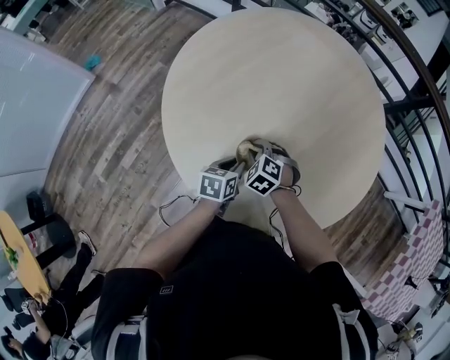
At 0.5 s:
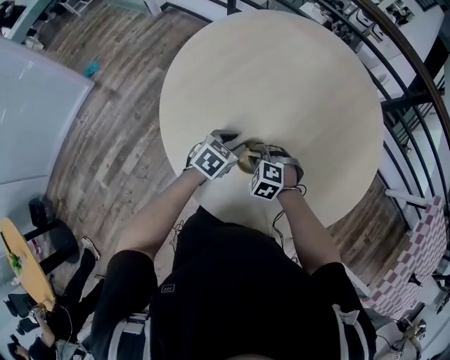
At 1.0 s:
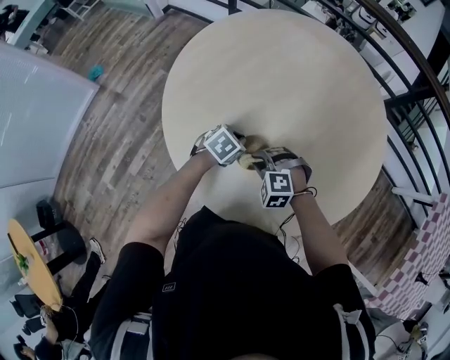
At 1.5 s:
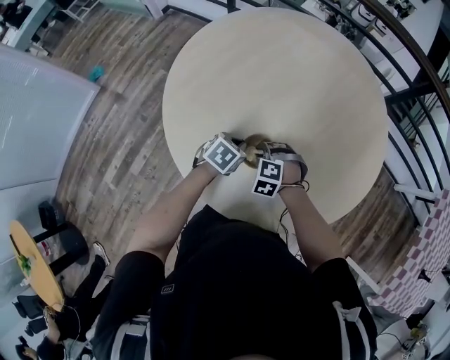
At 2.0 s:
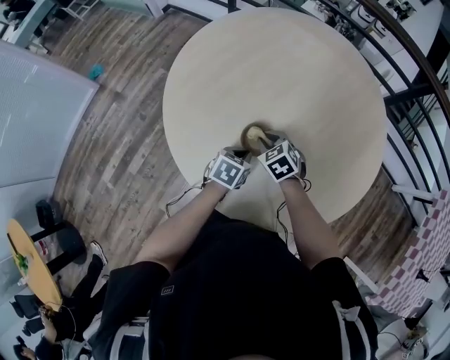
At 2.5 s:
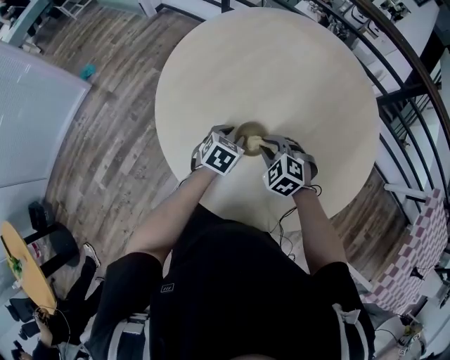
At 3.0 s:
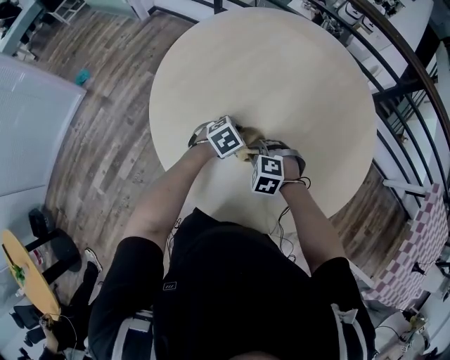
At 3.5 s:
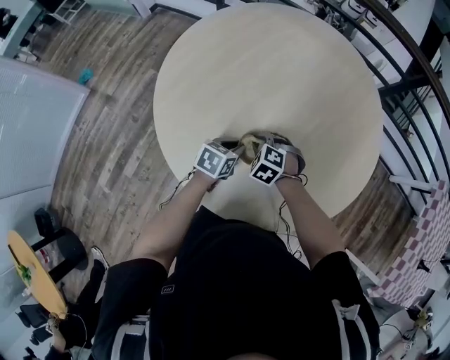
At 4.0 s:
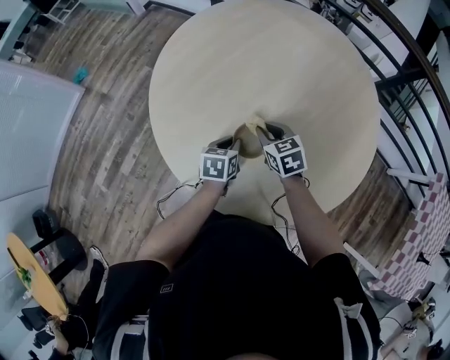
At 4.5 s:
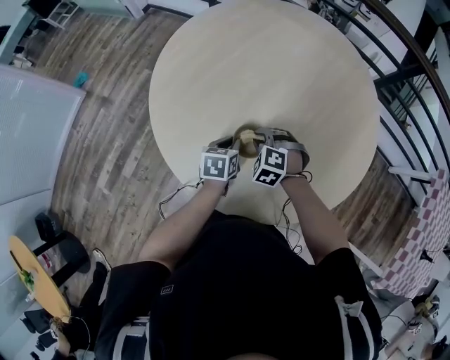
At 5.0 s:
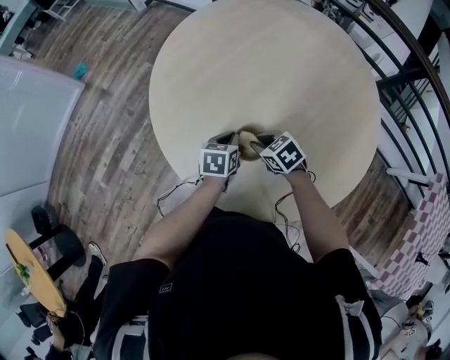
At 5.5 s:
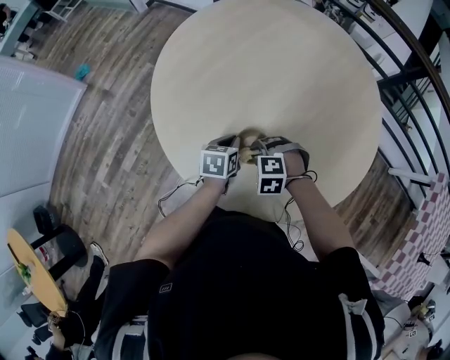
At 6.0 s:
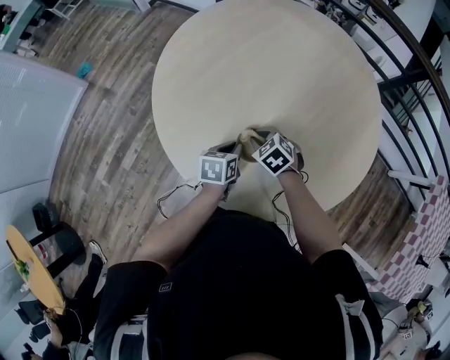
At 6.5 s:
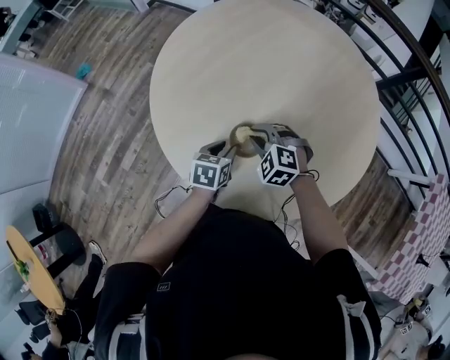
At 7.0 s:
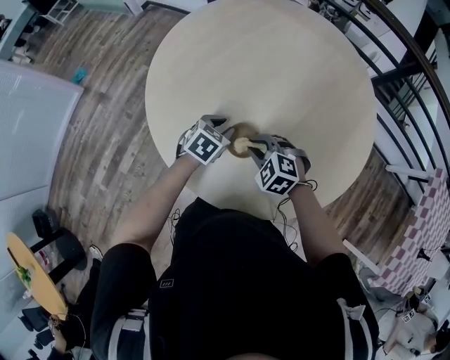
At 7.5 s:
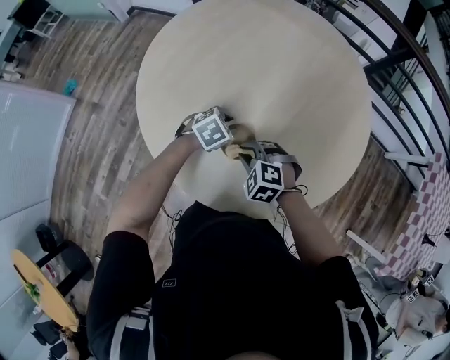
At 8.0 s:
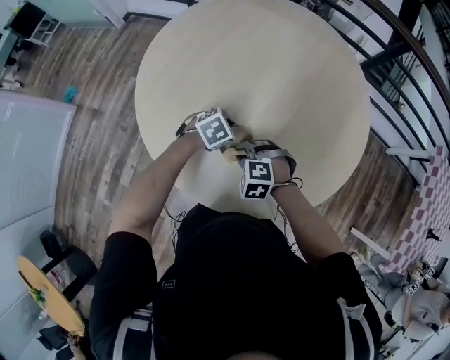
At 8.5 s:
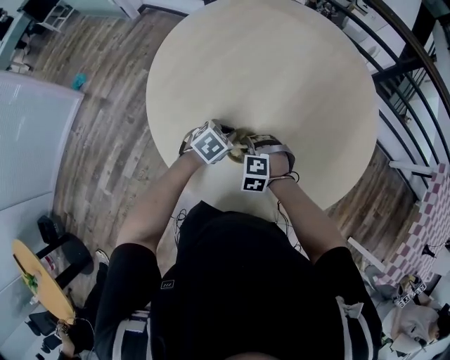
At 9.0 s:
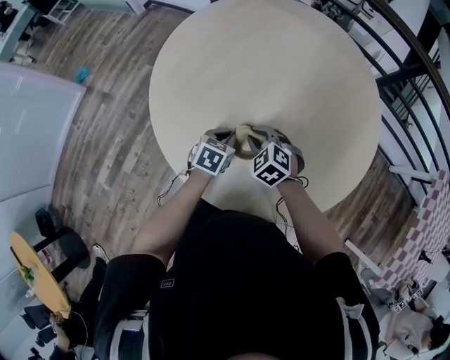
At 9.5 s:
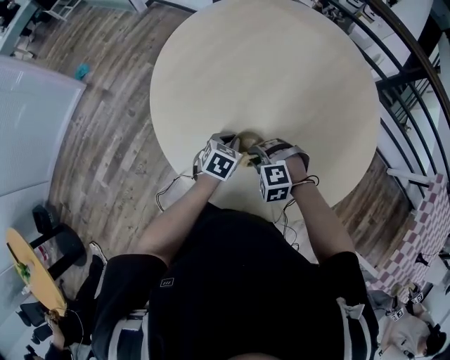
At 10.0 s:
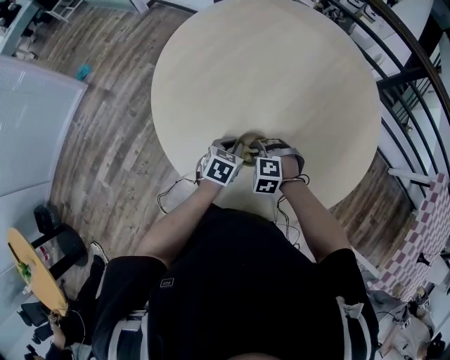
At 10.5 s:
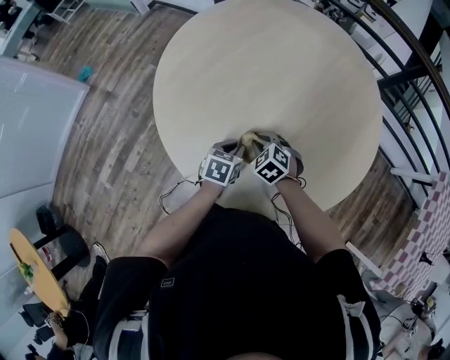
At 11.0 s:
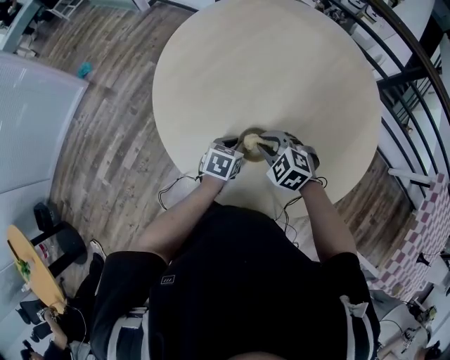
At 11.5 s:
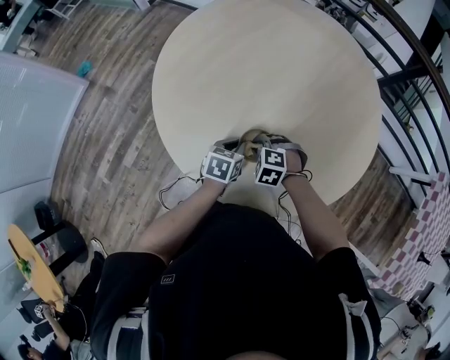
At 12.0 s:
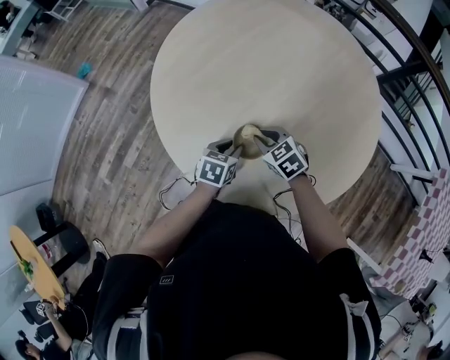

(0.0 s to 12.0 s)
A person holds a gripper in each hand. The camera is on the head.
0.0 s - 2.0 s: The right gripper shifts by about 5 cm, and swivels some 30 degrees, while the left gripper moves roughly 10 cm forward and comes back, and turns by approximately 20 degrees.
2.0 s - 4.0 s: The left gripper travels forward and back again, roughly 10 cm each way.
4.0 s - 6.0 s: The right gripper travels downward by approximately 5 cm, and swivels approximately 30 degrees.
6.0 s - 8.0 s: The left gripper shifts by approximately 5 cm, twists some 60 degrees clockwise, seen from behind, and opens and closes again, while the right gripper changes place by about 5 cm, and changes its angle by some 30 degrees.
8.0 s - 10.0 s: The left gripper moves about 5 cm, and turns by roughly 50 degrees. The right gripper moves up and down over about 5 cm, changing direction 2 times.
10.0 s - 12.0 s: The right gripper swings up and down, about 10 cm each way, with 2 reversals, and twists some 40 degrees clockwise, seen from behind.

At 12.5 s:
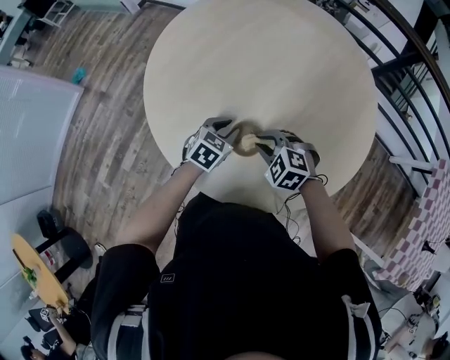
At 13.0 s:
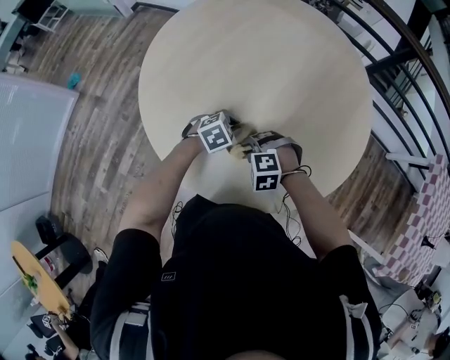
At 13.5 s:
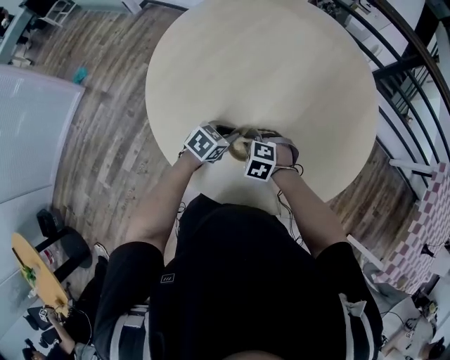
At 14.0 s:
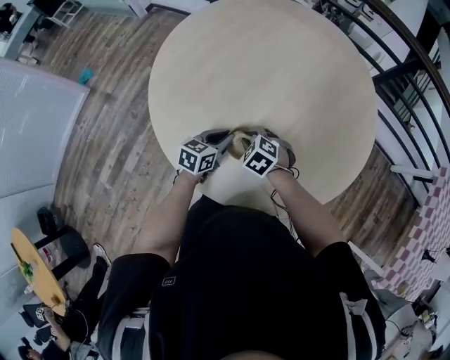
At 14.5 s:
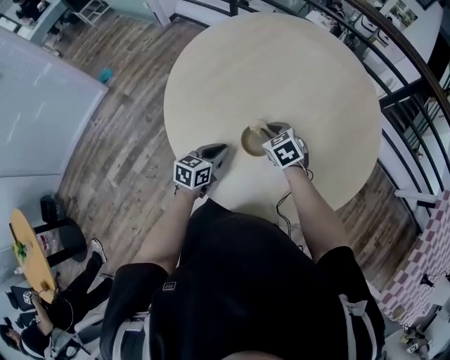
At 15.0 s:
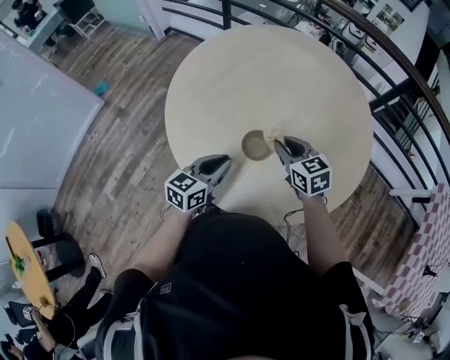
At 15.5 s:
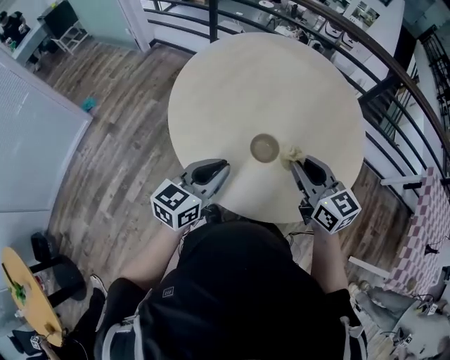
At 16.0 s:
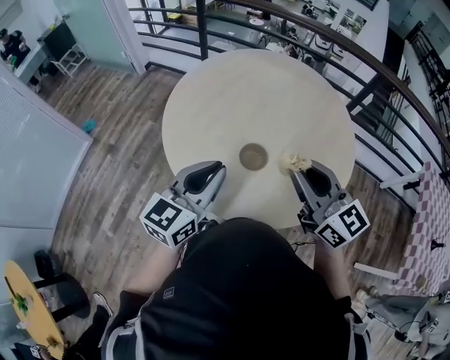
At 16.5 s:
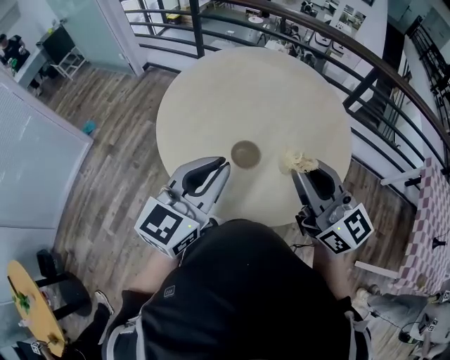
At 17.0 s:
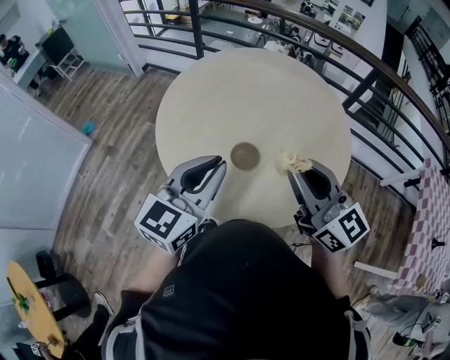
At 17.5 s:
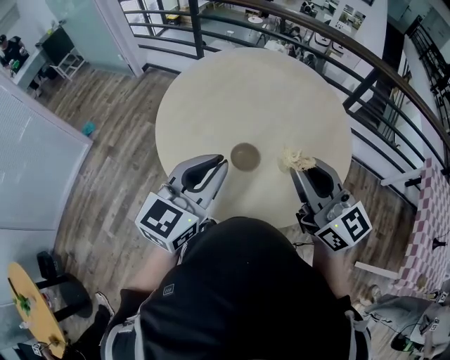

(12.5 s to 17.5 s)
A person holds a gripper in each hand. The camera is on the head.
12.5 s - 15.0 s: The grippers both shift upward by roughly 10 cm. The right gripper rolls clockwise, seen from behind, by about 40 degrees. The left gripper rotates some 30 degrees.
15.0 s - 17.5 s: The left gripper is displaced upward by about 25 cm, and swivels approximately 20 degrees. Meanwhile the right gripper heads upward and backward, covering approximately 30 cm, and tilts its fingers approximately 40 degrees upward.

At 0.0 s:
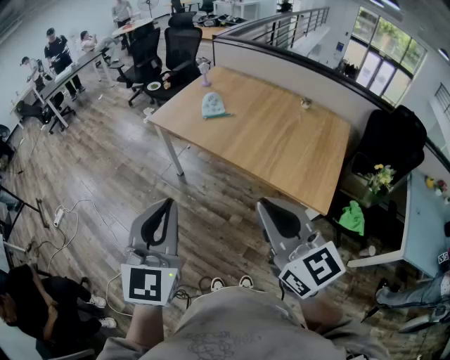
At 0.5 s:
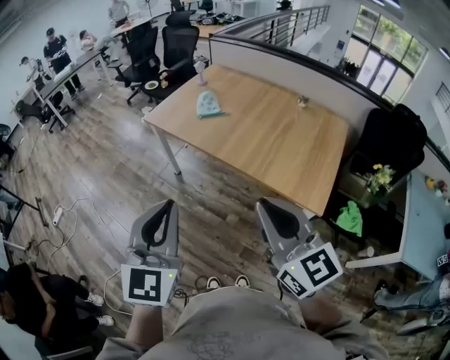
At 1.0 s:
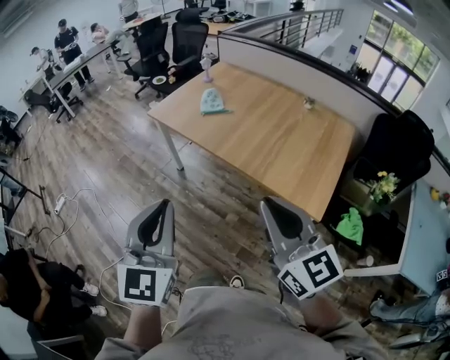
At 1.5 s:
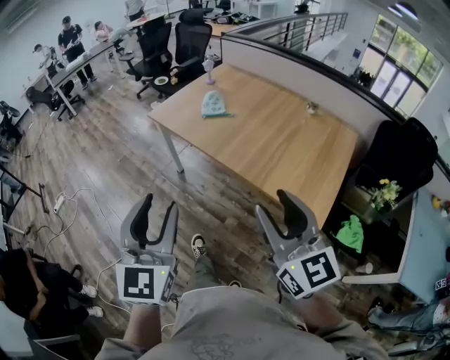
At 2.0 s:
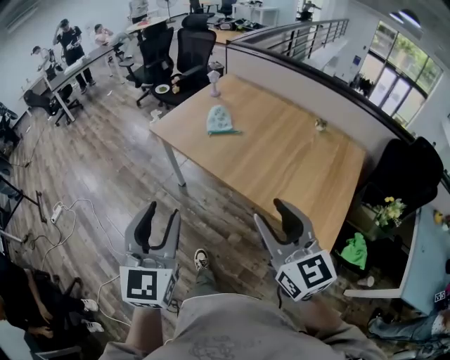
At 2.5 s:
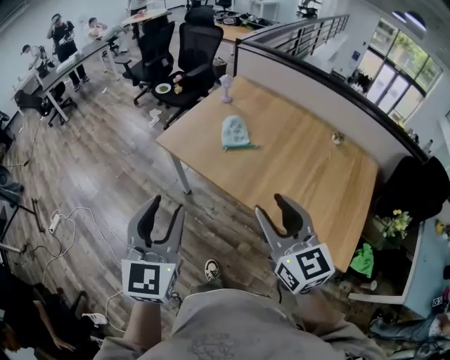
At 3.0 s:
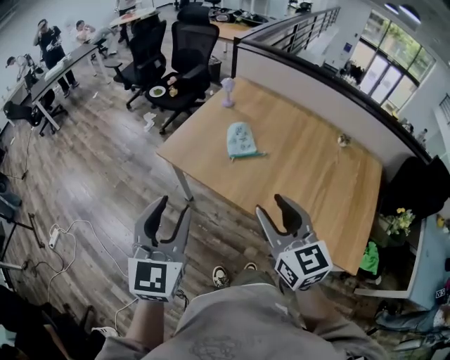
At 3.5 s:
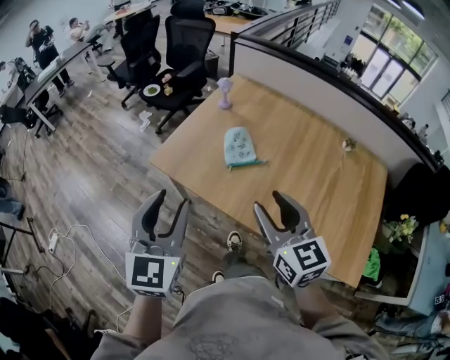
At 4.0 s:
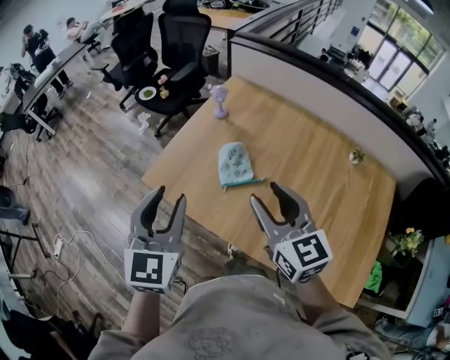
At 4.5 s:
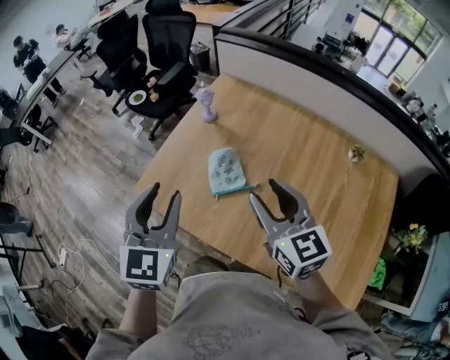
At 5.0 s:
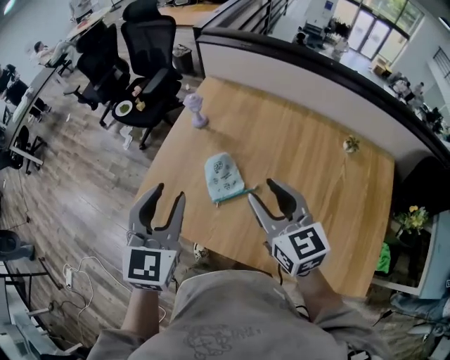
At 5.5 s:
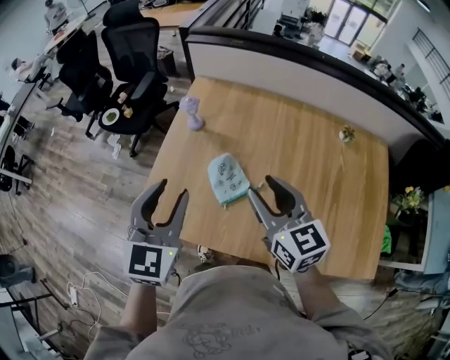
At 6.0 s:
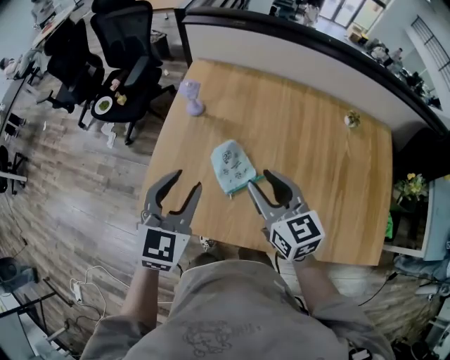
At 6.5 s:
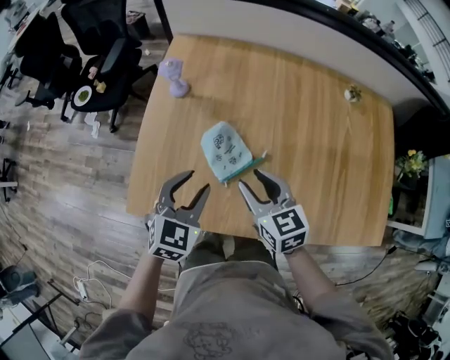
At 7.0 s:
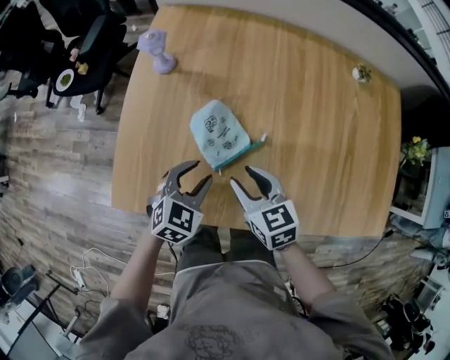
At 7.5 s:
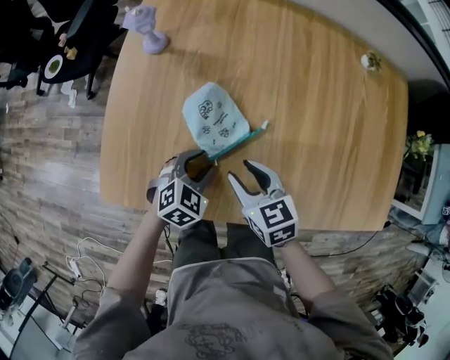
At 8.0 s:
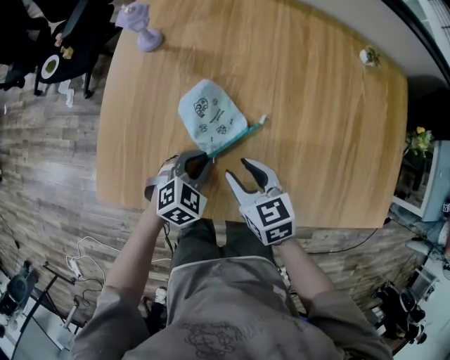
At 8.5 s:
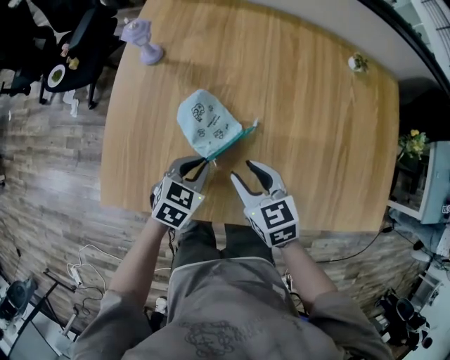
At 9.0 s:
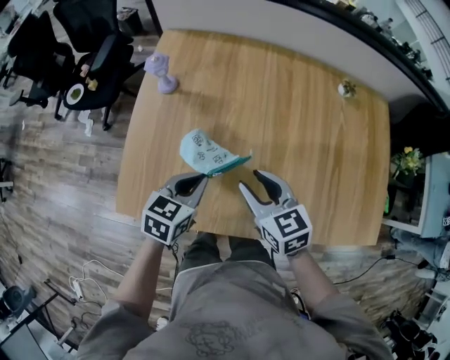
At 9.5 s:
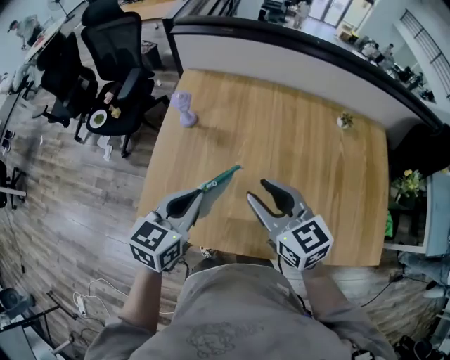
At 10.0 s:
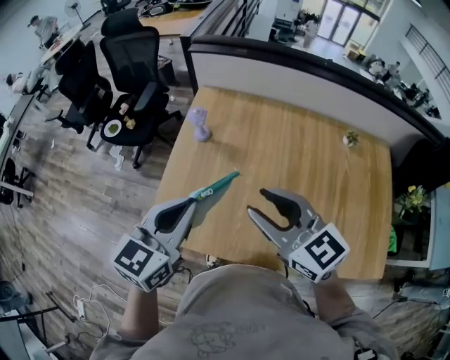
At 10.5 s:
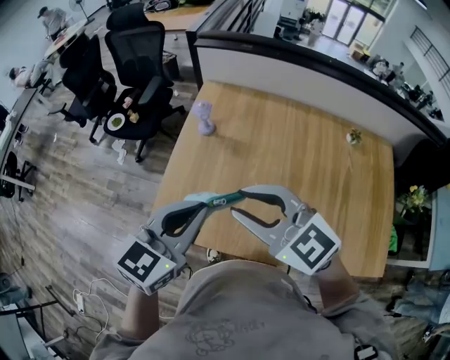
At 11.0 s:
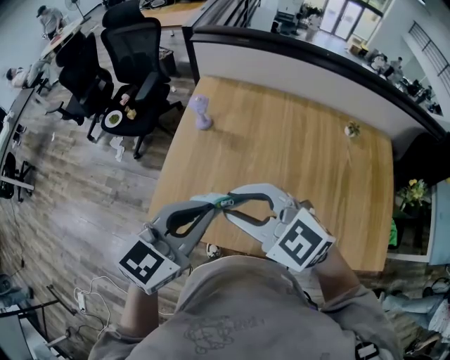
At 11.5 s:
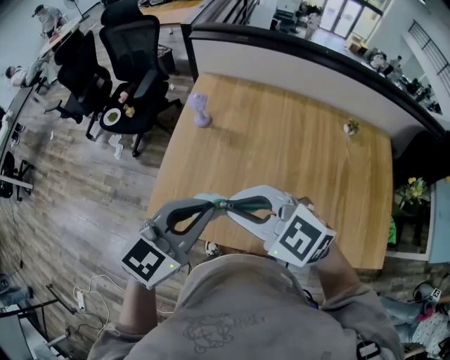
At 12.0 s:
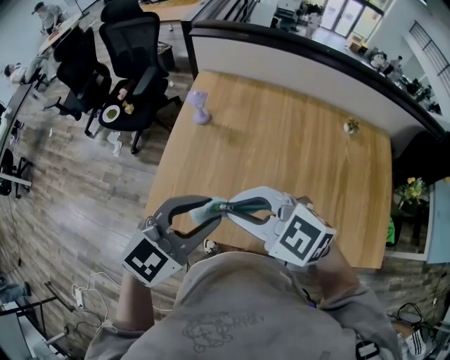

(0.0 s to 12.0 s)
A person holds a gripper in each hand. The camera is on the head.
0.0 s - 2.0 s: The right gripper moves forward and to the right, about 15 cm, and opens up. Meanwhile the left gripper travels forward by some 15 cm, and opens up.
2.0 s - 4.0 s: Both grippers are carried forward, some 50 cm.
4.0 s - 6.0 s: Both grippers move forward and downward, some 15 cm. The left gripper rotates about 30 degrees.
6.0 s - 8.0 s: The grippers both shift downward by about 30 cm. The left gripper tilts its fingers roughly 30 degrees downward, and closes its fingers, while the right gripper turns by about 30 degrees.
8.0 s - 10.0 s: Both grippers move upward, about 35 cm. The left gripper angles its fingers upward, by some 40 degrees; the right gripper tilts its fingers some 30 degrees upward.
10.0 s - 12.0 s: The right gripper shifts about 5 cm to the left, rotates some 30 degrees, and closes its fingers. Meanwhile the left gripper heads backward, covering some 5 cm, turns by approximately 20 degrees, and opens.
